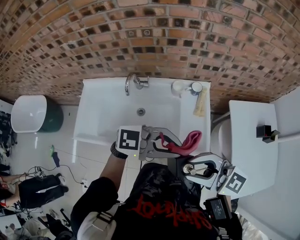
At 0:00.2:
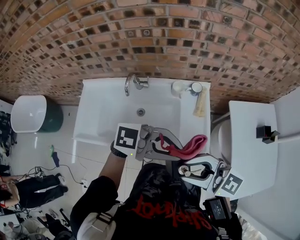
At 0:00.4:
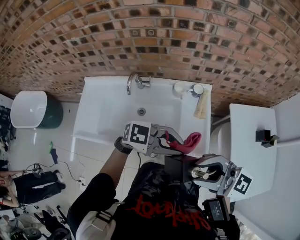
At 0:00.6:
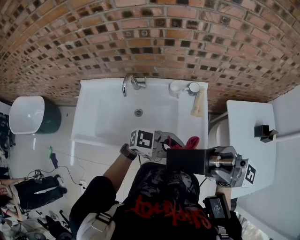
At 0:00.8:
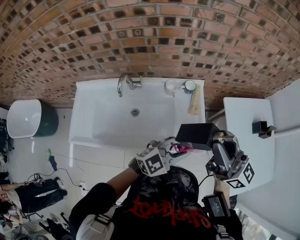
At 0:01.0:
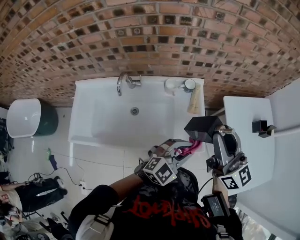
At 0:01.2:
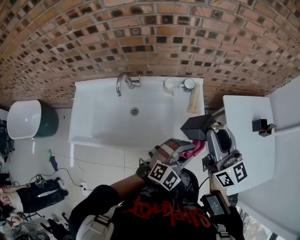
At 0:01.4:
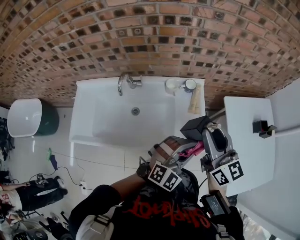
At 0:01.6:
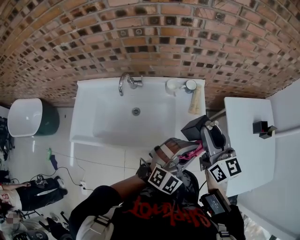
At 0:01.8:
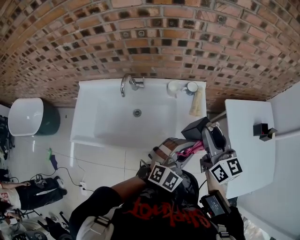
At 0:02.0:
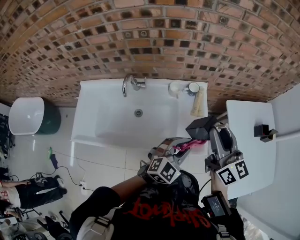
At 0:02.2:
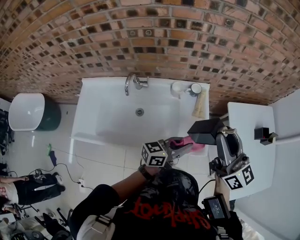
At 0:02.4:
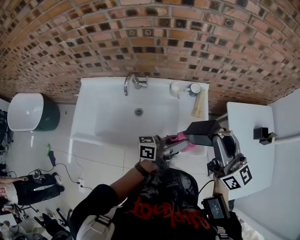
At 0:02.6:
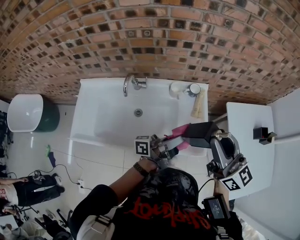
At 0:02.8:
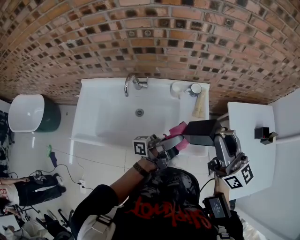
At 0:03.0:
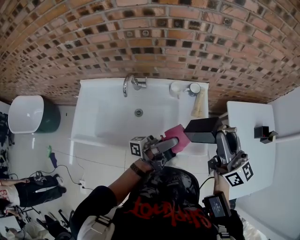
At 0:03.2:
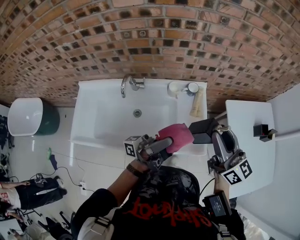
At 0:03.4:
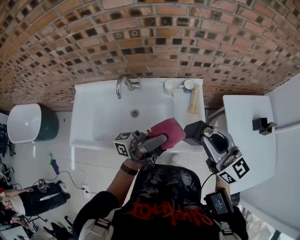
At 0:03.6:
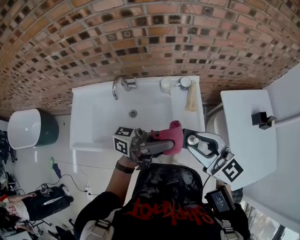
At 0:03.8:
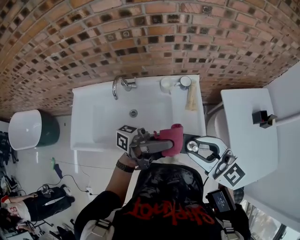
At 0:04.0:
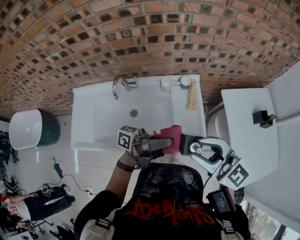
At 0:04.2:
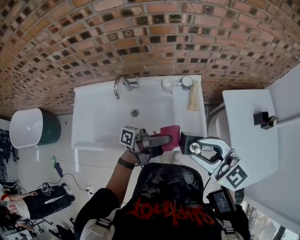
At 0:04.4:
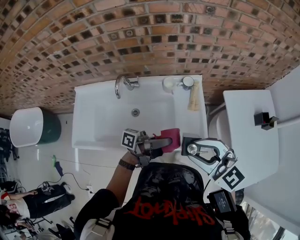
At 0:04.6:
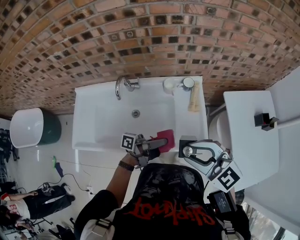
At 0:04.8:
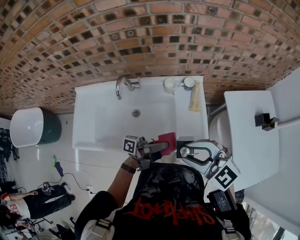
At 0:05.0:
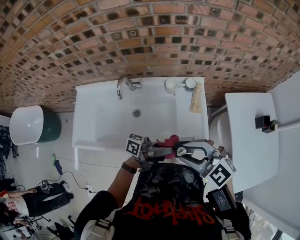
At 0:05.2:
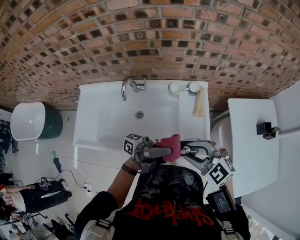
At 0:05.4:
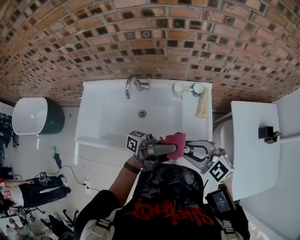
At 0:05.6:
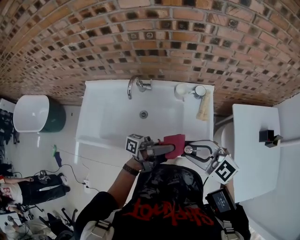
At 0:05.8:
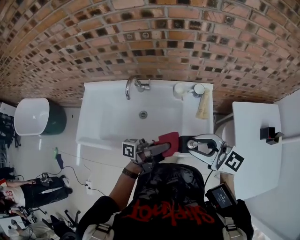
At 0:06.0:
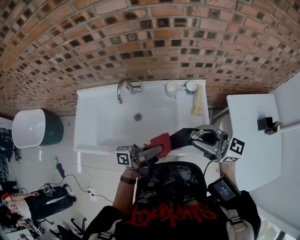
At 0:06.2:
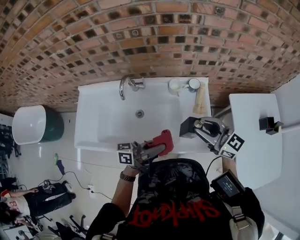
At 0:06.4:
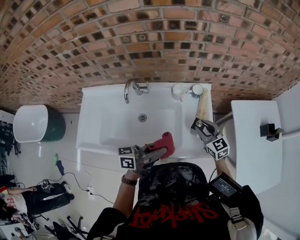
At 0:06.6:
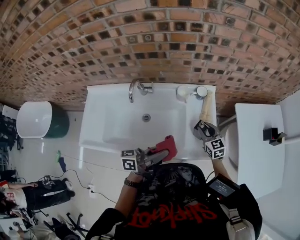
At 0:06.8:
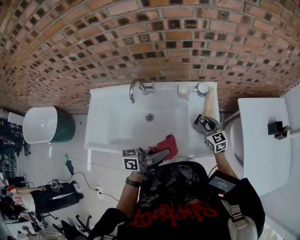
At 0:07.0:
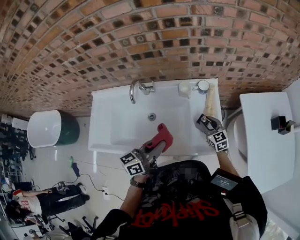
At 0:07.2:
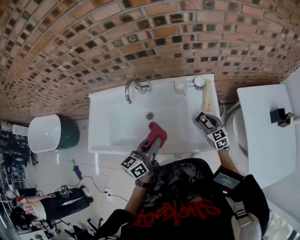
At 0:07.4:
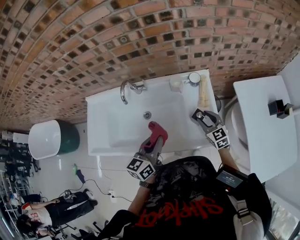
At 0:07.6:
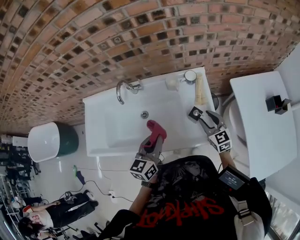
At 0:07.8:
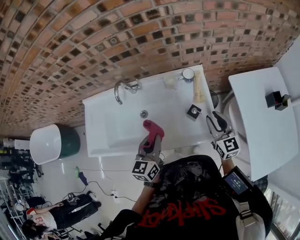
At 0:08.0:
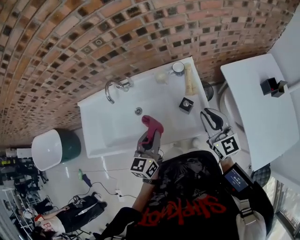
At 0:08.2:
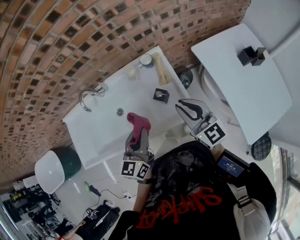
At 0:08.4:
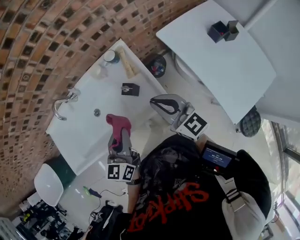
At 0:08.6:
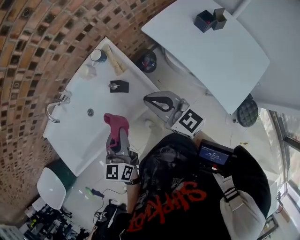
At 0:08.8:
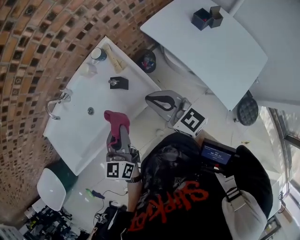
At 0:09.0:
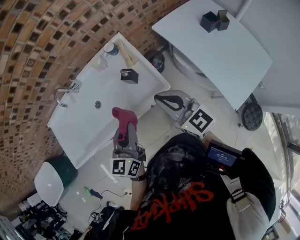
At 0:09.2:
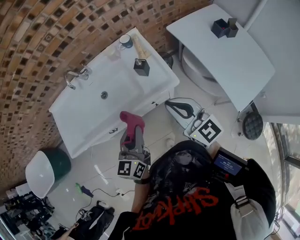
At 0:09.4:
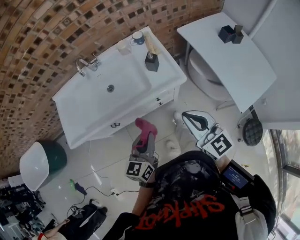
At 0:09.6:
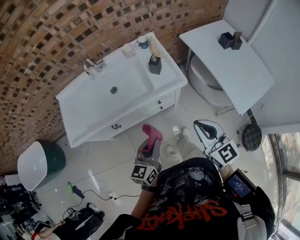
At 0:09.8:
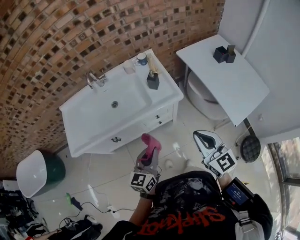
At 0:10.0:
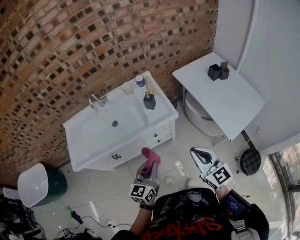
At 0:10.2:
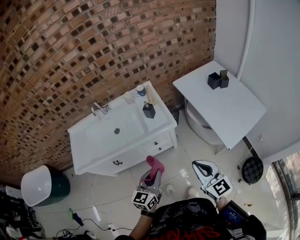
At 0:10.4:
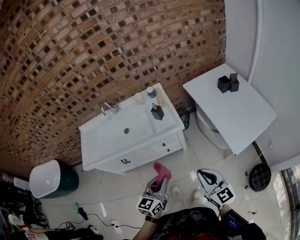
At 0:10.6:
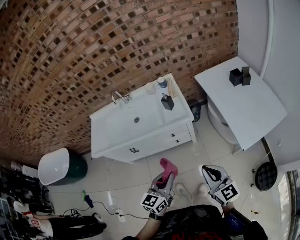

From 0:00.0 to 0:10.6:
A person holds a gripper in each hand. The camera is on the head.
From 0:00.0 to 0:01.6: The left gripper moves about 10 cm, and turns by about 60 degrees. Meanwhile the right gripper reaches about 10 cm upward, then returns, and changes its angle by about 50 degrees.
From 0:01.6 to 0:03.0: The left gripper moves to the left, approximately 15 cm, and rotates around the line of its fingers by about 100 degrees, counterclockwise from behind, while the right gripper is displaced upward by roughly 5 cm.
From 0:03.0 to 0:04.6: The right gripper shifts by roughly 15 cm, and rotates some 60 degrees. The left gripper heads downward, covering some 10 cm, and rotates about 30 degrees.
From 0:04.6 to 0:06.0: The left gripper turns by roughly 20 degrees, while the right gripper moves roughly 10 cm downward and comes back, and rotates about 40 degrees.
From 0:06.0 to 0:07.6: The left gripper tilts its fingers approximately 30 degrees downward, while the right gripper is displaced downward by approximately 20 cm, and tips its fingers downward by approximately 30 degrees.
From 0:07.6 to 0:09.0: The right gripper heads backward and upward, covering approximately 25 cm, rotates roughly 20 degrees, and closes up; the left gripper heads to the right and backward, covering roughly 20 cm.
From 0:09.0 to 0:10.6: Both grippers travel together backward, about 30 cm.

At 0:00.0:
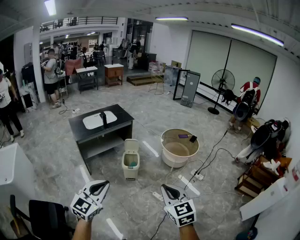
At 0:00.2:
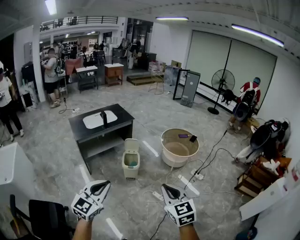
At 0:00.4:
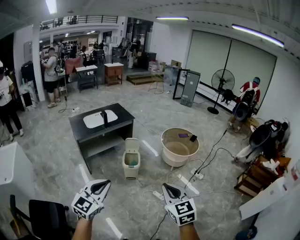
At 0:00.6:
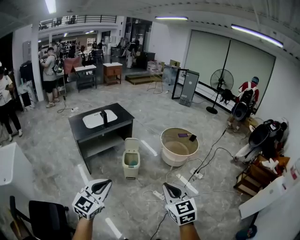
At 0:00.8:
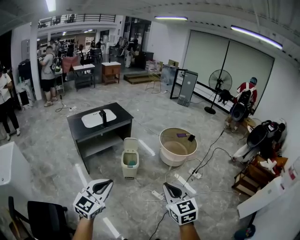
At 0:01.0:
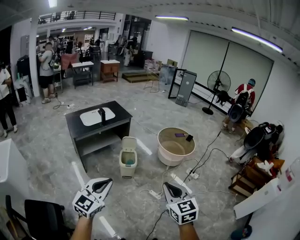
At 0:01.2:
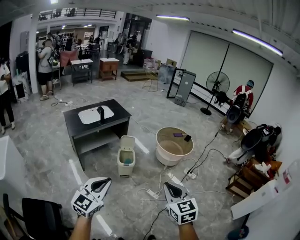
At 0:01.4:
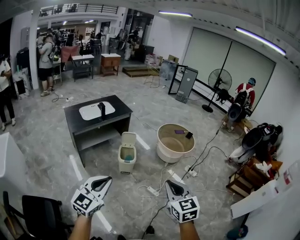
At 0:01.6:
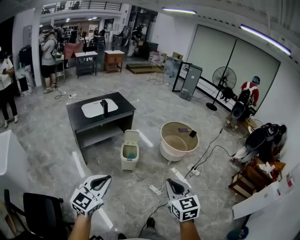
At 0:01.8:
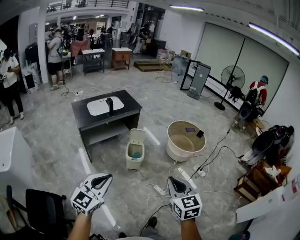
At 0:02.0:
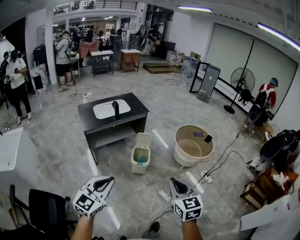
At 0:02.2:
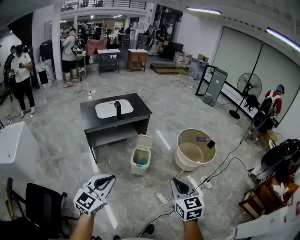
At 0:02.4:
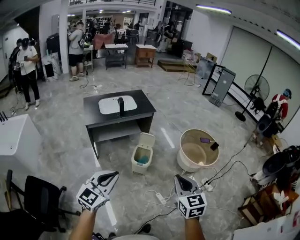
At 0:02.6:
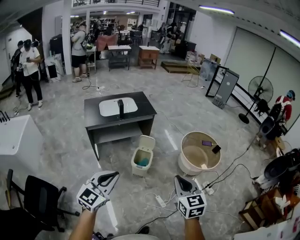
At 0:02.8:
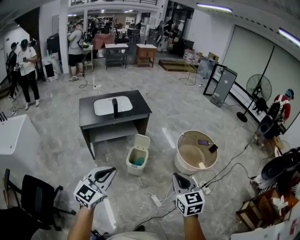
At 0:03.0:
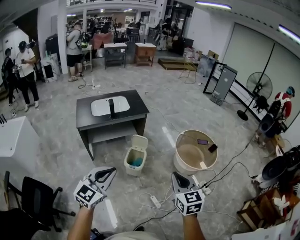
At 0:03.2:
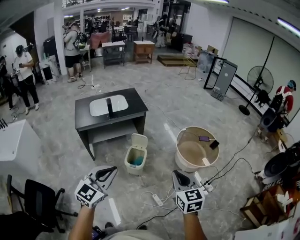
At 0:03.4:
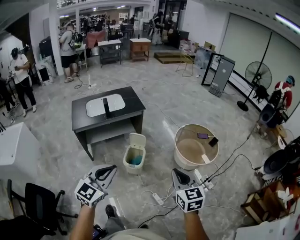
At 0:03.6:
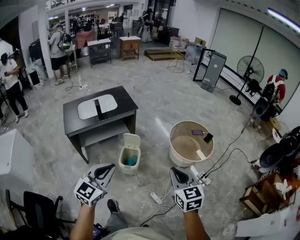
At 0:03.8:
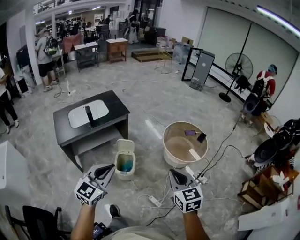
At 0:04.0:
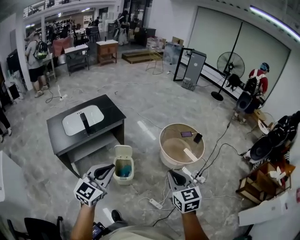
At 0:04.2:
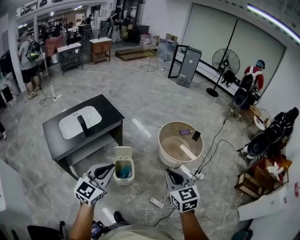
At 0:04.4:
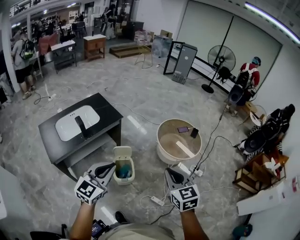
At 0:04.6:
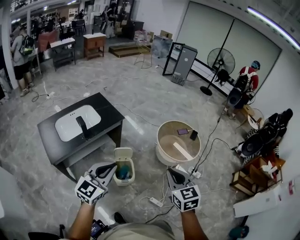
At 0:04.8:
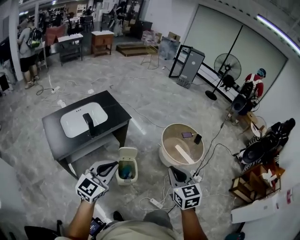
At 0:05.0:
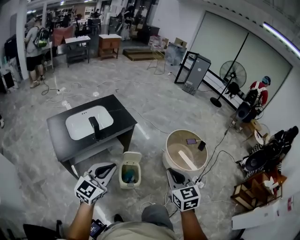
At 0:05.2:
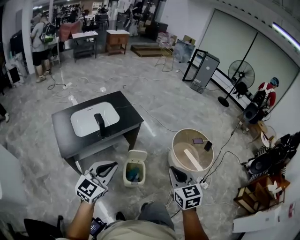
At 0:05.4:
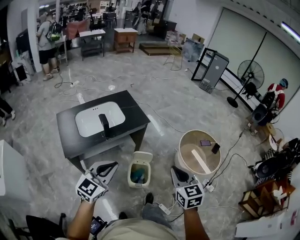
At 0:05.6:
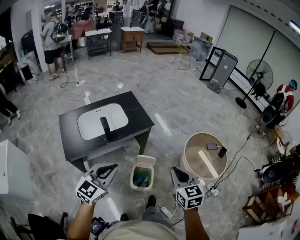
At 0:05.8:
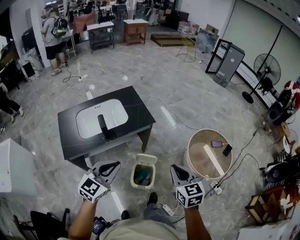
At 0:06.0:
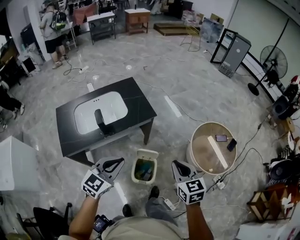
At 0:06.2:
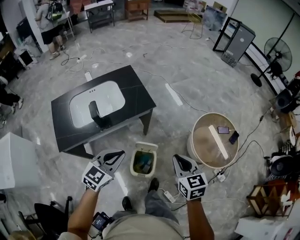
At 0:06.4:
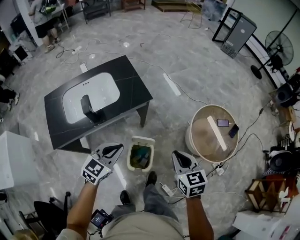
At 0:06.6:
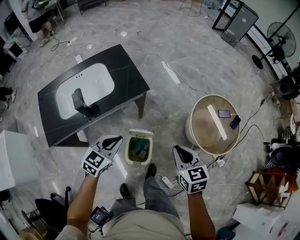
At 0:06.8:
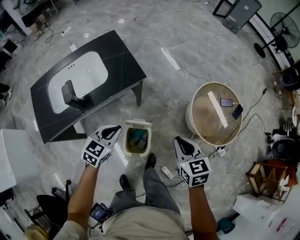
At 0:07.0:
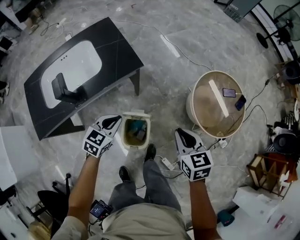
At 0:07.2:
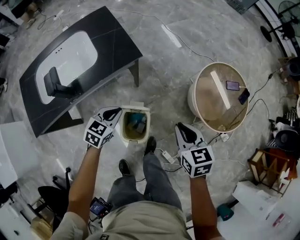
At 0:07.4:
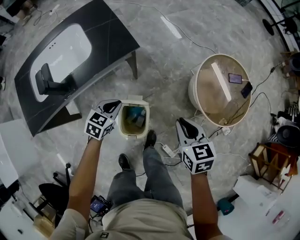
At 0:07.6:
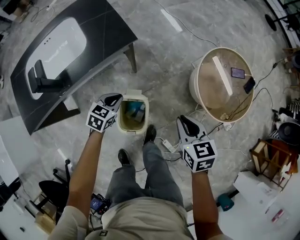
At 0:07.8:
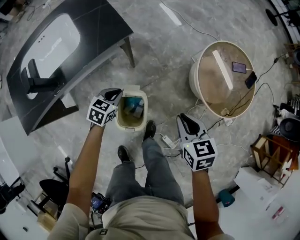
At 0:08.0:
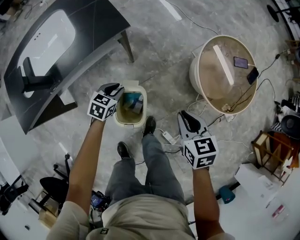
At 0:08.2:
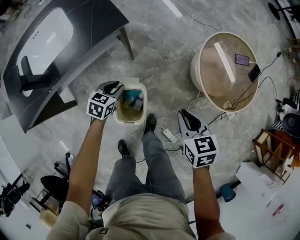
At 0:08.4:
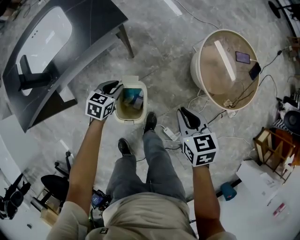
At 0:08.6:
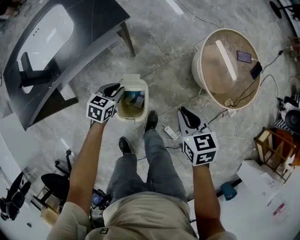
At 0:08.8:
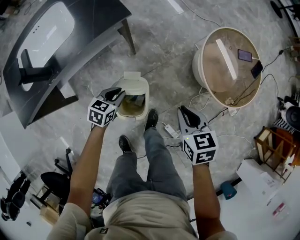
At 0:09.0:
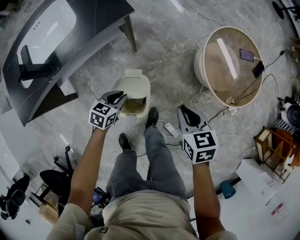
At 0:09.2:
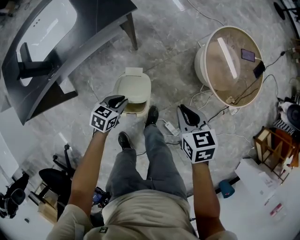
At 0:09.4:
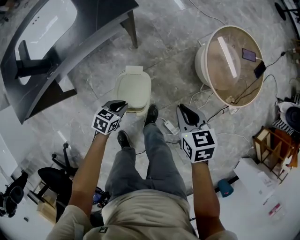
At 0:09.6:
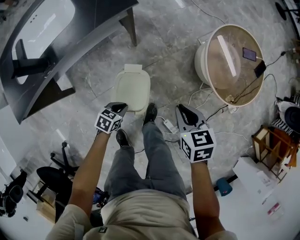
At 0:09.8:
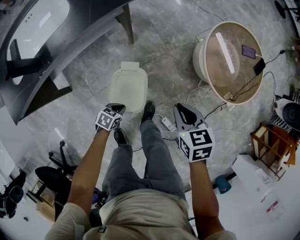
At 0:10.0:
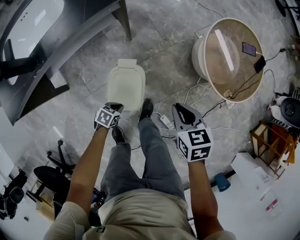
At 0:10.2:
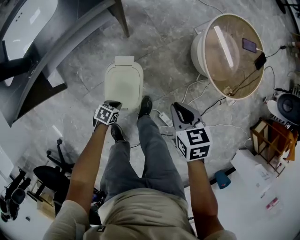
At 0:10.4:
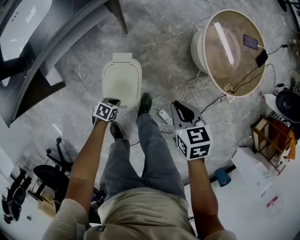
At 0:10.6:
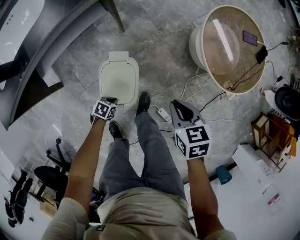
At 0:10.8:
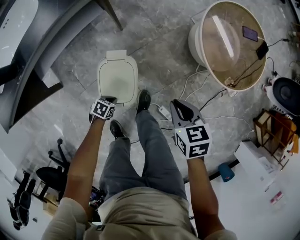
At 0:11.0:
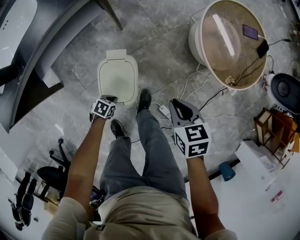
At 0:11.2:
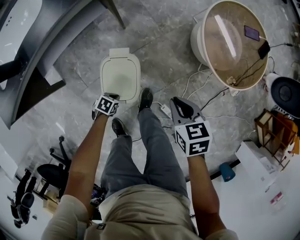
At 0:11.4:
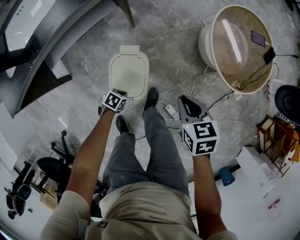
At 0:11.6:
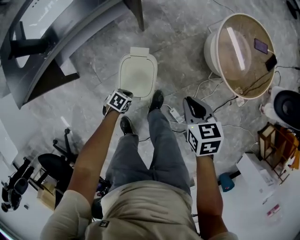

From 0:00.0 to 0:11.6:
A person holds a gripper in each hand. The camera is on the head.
From 0:00.0 to 0:01.4: The left gripper moves to the left, about 5 cm. The right gripper moves approximately 5 cm.
From 0:01.4 to 0:02.8: The left gripper shifts roughly 25 cm forward and to the right. The right gripper shifts some 30 cm forward.
From 0:02.8 to 0:04.4: The left gripper heads forward, covering roughly 30 cm, and rotates some 20 degrees. Meanwhile the right gripper is displaced forward and to the left by roughly 20 cm.
From 0:04.4 to 0:05.8: Both grippers move forward and to the left, approximately 20 cm.
From 0:05.8 to 0:07.2: The two grippers go approximately 35 cm downward and forward. The left gripper swivels roughly 30 degrees.
From 0:07.2 to 0:08.8: Both grippers move downward, approximately 15 cm.
From 0:08.8 to 0:10.2: The left gripper travels downward and backward by about 25 cm, and turns by about 30 degrees, while the right gripper goes about 5 cm downward.
From 0:10.2 to 0:11.6: The grippers move only a little.

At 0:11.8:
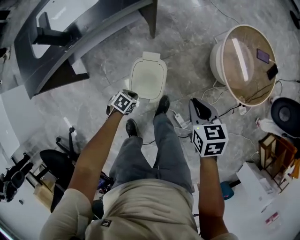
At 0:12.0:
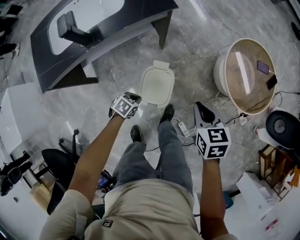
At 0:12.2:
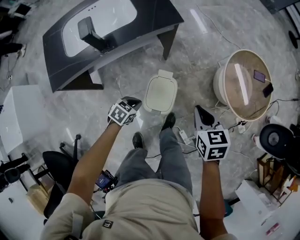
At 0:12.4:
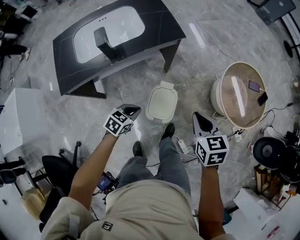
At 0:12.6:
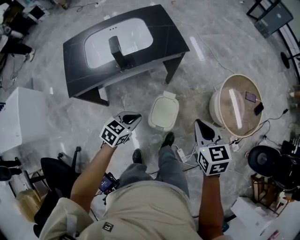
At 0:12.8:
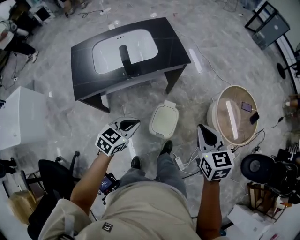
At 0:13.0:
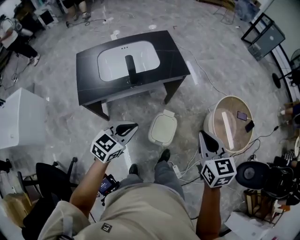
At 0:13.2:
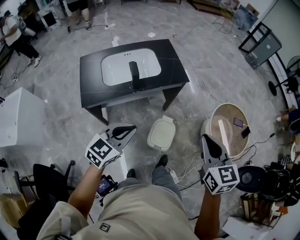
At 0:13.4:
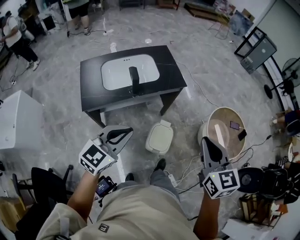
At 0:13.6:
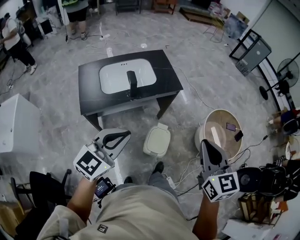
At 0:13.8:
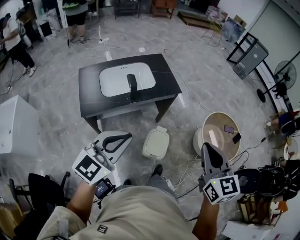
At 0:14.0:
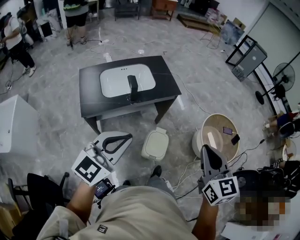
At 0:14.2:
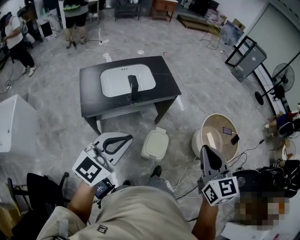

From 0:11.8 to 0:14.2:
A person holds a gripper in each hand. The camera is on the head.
From 0:11.8 to 0:13.0: Both grippers travel together upward, about 40 cm. The right gripper turns by roughly 30 degrees; the left gripper points its fingers roughly 40 degrees further upward.
From 0:13.0 to 0:14.2: The grippers both shift upward and backward by approximately 20 cm. The left gripper swivels approximately 20 degrees.
